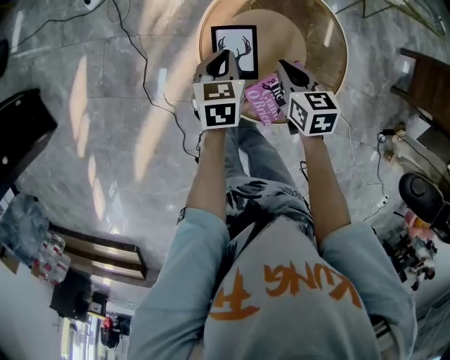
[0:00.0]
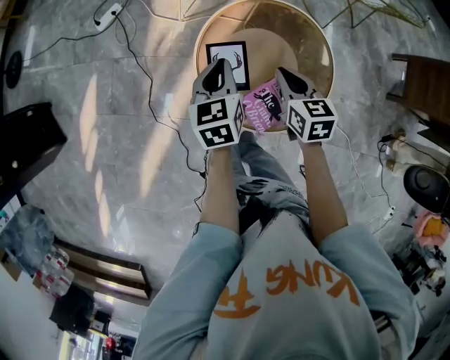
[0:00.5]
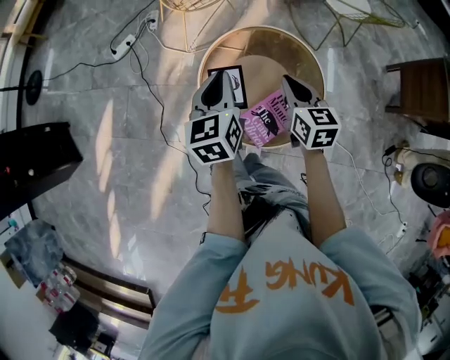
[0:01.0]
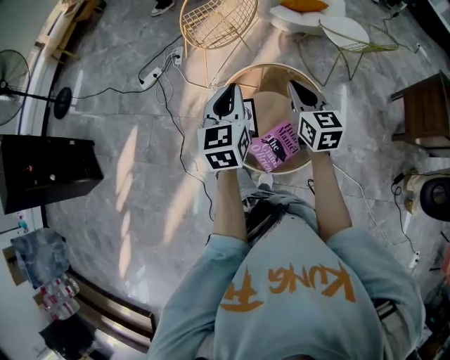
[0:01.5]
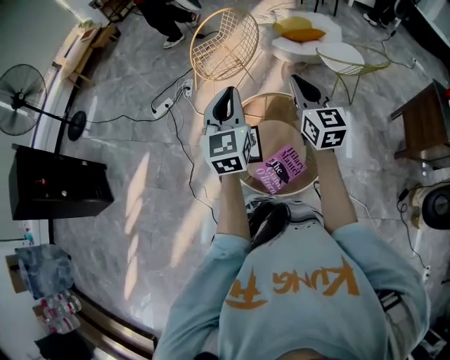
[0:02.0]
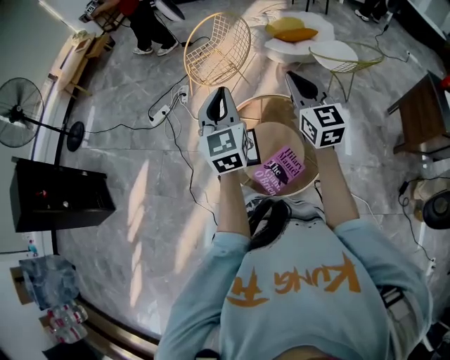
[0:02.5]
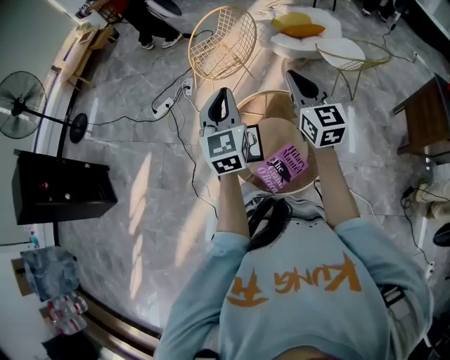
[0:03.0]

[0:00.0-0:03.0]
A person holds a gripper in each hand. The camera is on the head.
0:00.0 to 0:01.5: Both grippers travel together upward, some 30 cm. The left gripper turns by some 30 degrees. The right gripper swivels approximately 30 degrees.
0:01.5 to 0:03.0: The right gripper travels upward by some 15 cm. The left gripper is displaced upward by some 10 cm.

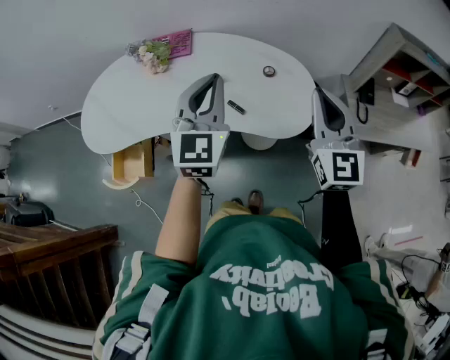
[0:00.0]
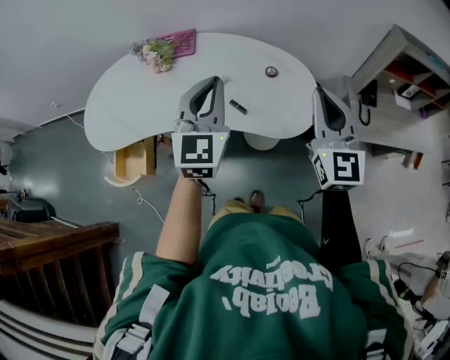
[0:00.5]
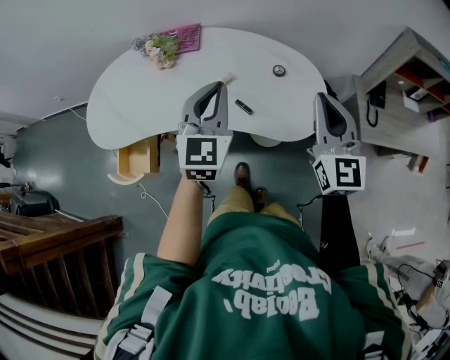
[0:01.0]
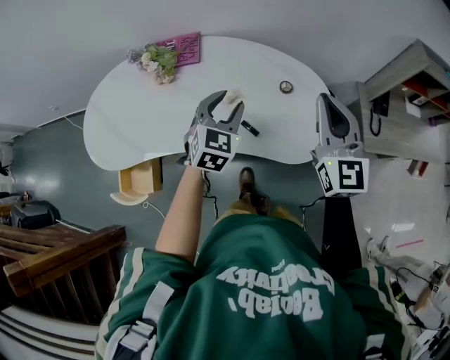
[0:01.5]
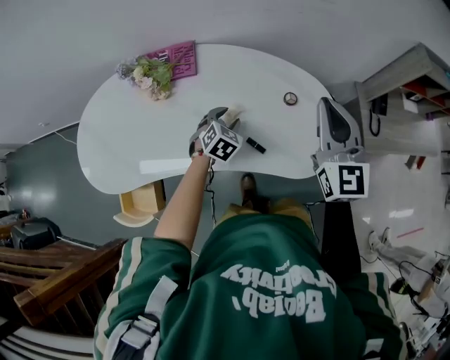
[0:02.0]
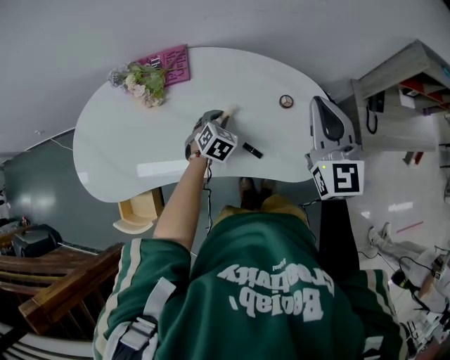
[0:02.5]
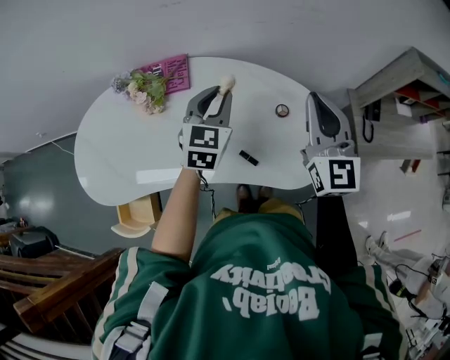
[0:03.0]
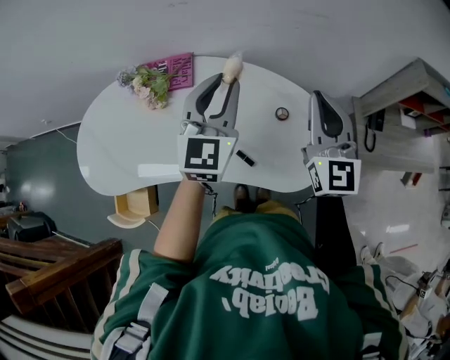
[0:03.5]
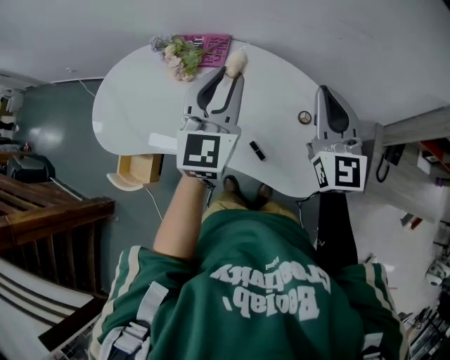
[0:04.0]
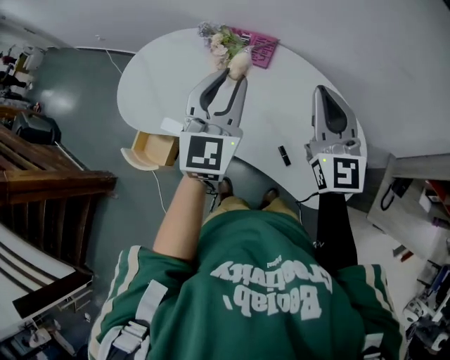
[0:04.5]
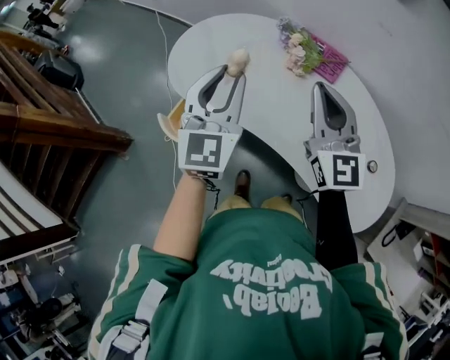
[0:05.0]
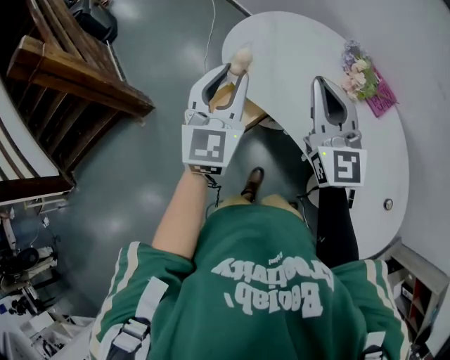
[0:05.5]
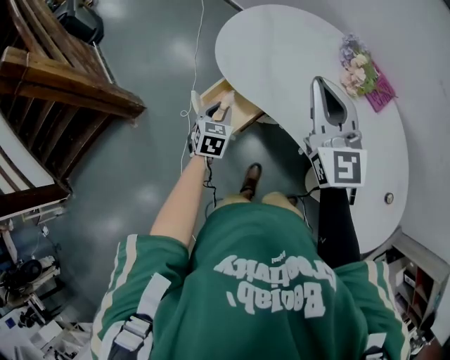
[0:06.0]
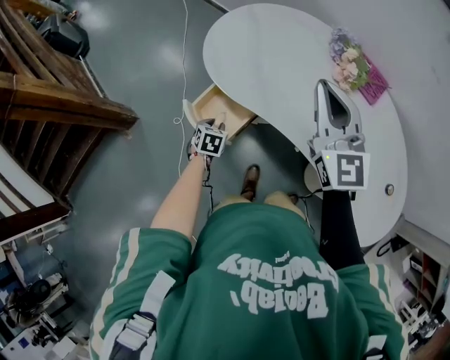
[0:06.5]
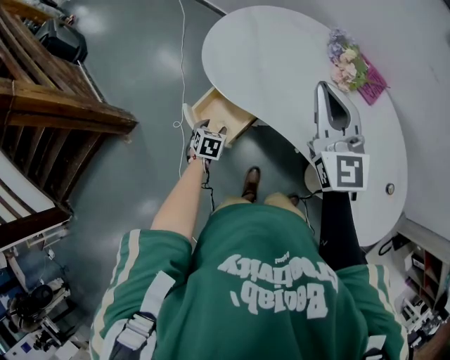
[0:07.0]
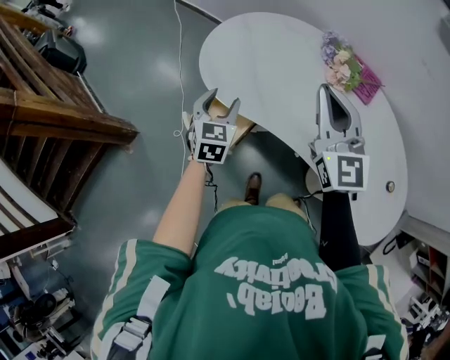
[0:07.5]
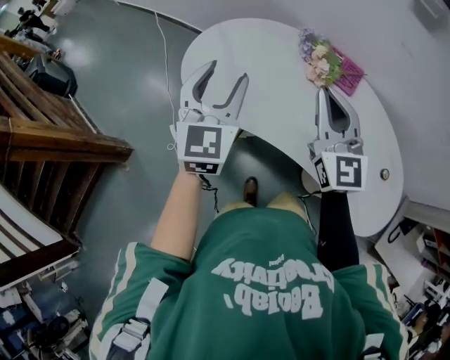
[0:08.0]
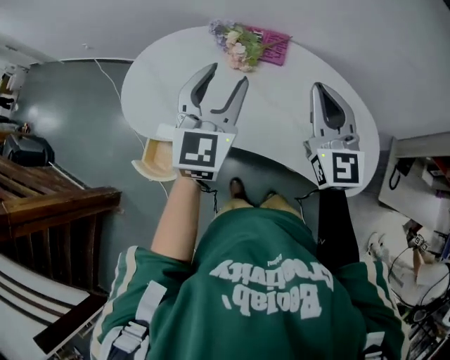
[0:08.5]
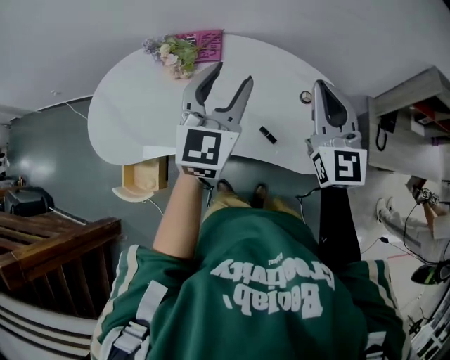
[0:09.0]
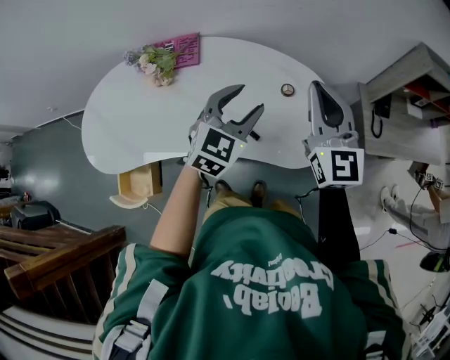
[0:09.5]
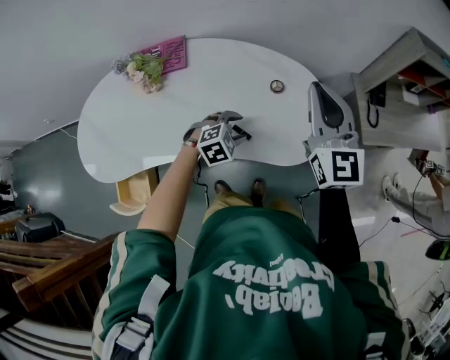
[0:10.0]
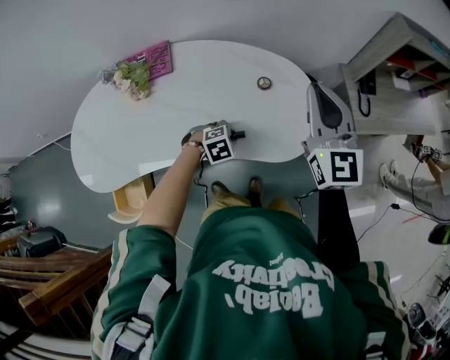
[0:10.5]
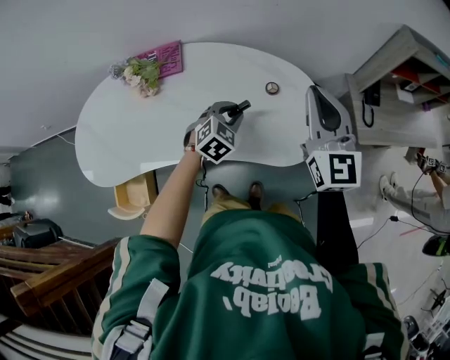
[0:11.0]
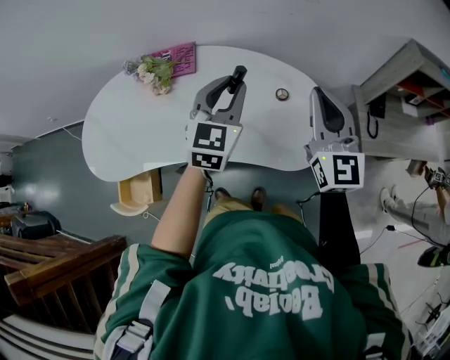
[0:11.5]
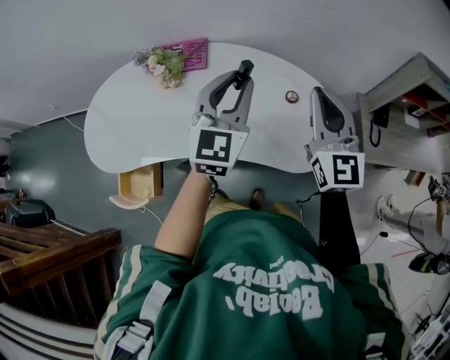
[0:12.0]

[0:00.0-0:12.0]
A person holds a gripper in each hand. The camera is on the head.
0:00.0 to 0:02.0: The left gripper travels downward and forward by some 35 cm, points its fingers some 50 degrees further downward, and opens; the right gripper heads forward, covering approximately 15 cm.
0:02.0 to 0:04.0: The right gripper travels forward by some 5 cm. The left gripper heads upward, covering some 30 cm, and tilts its fingers about 50 degrees upward.
0:04.0 to 0:06.0: Both grippers are carried roughly 50 cm. The left gripper tips its fingers downward by roughly 40 degrees. Meanwhile the right gripper changes its angle by approximately 40 degrees.
0:06.0 to 0:08.0: The right gripper travels to the right by about 10 cm. Meanwhile the left gripper goes approximately 30 cm upward, points its fingers some 40 degrees further upward, and opens its fingers.
0:08.0 to 0:10.0: The two grippers travel together, approximately 50 cm. The right gripper changes its angle by some 40 degrees. Meanwhile the left gripper points its fingers about 50 degrees further downward.
0:10.0 to 0:12.0: The right gripper ends up roughly 5 cm from where it was; the left gripper travels upward by roughly 30 cm, tilts its fingers about 60 degrees upward, and closes its fingers.

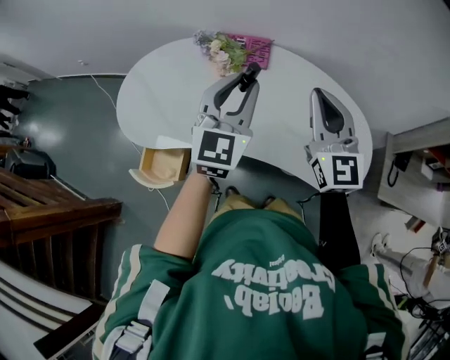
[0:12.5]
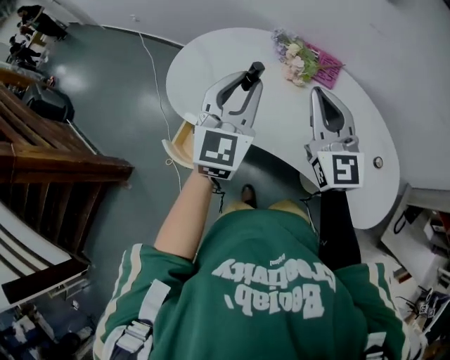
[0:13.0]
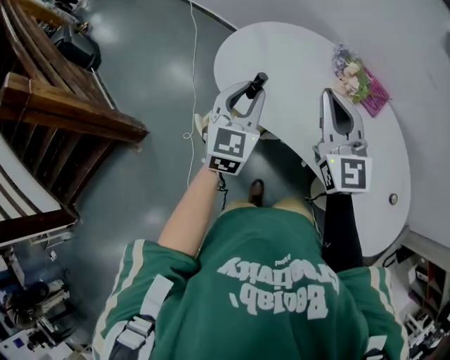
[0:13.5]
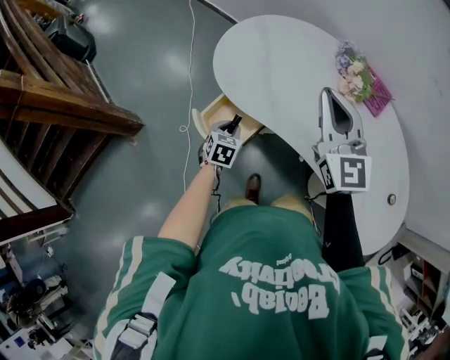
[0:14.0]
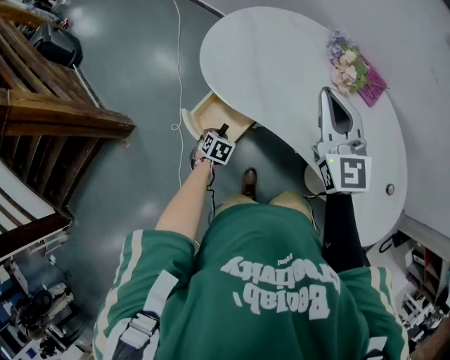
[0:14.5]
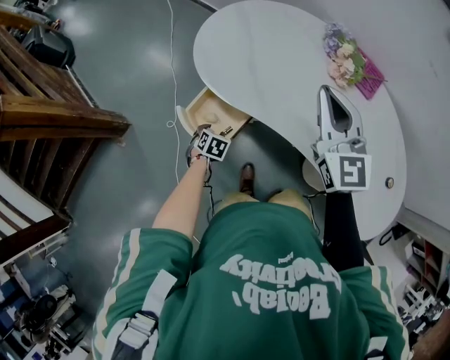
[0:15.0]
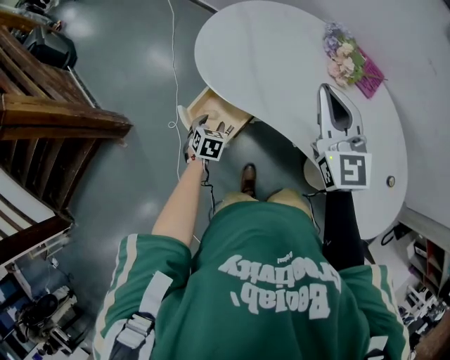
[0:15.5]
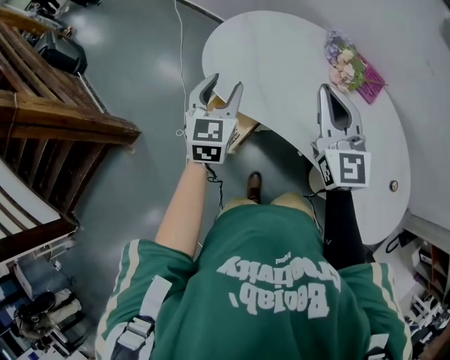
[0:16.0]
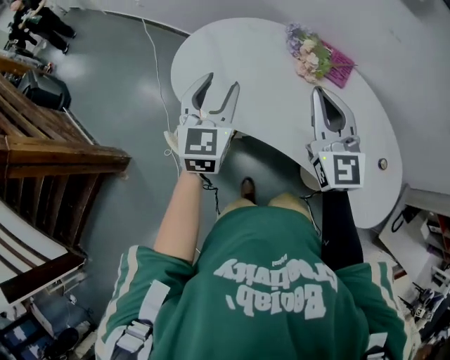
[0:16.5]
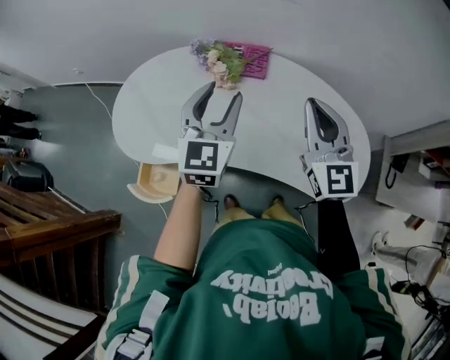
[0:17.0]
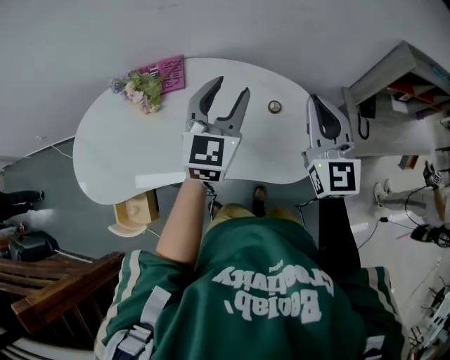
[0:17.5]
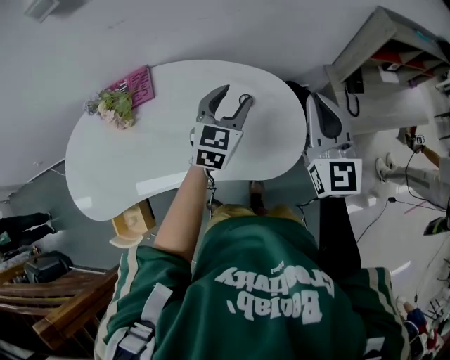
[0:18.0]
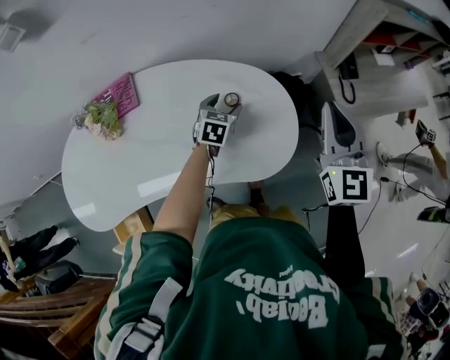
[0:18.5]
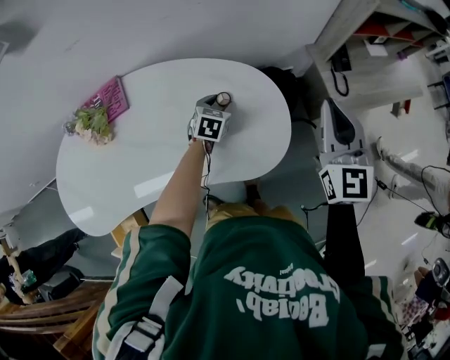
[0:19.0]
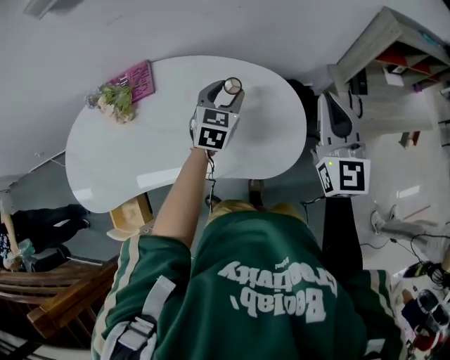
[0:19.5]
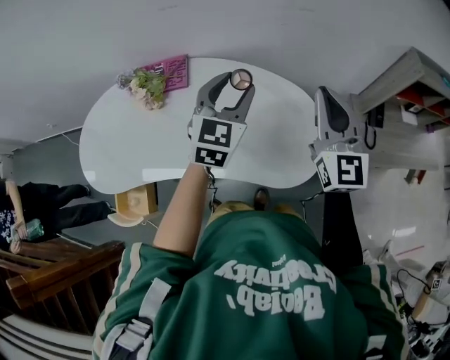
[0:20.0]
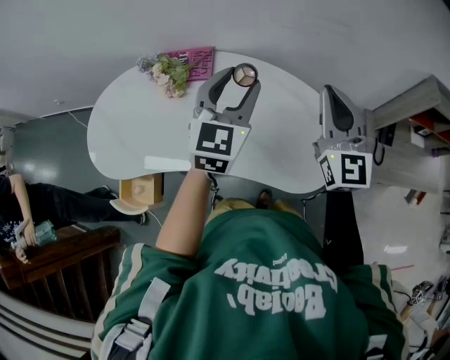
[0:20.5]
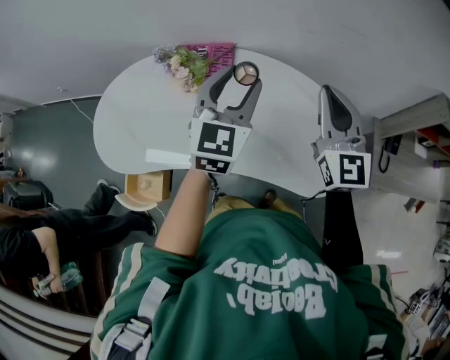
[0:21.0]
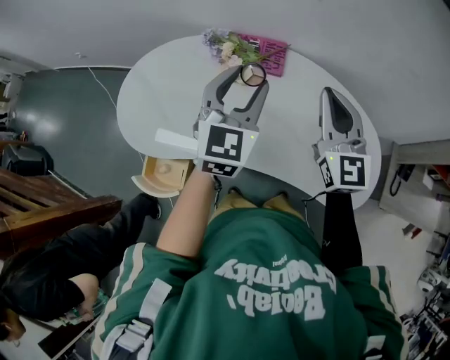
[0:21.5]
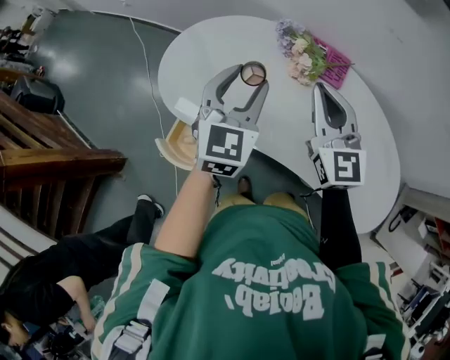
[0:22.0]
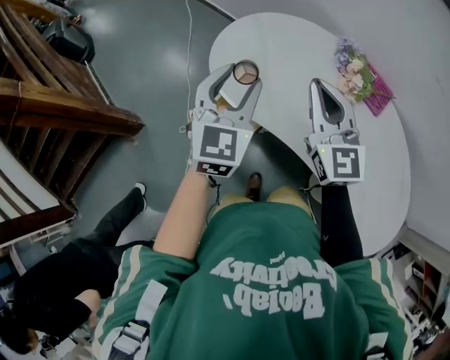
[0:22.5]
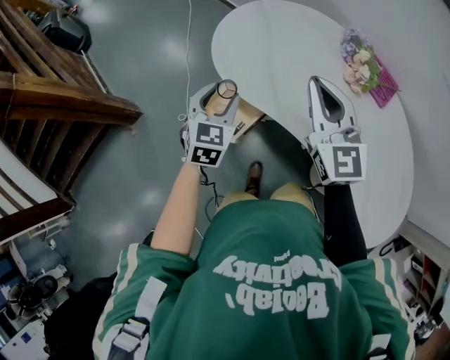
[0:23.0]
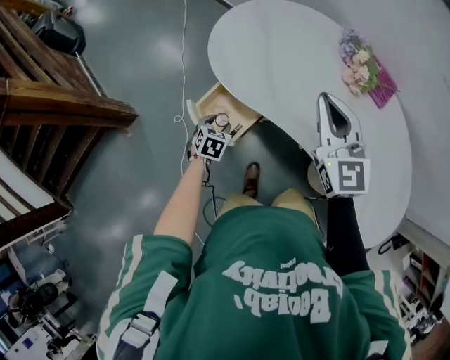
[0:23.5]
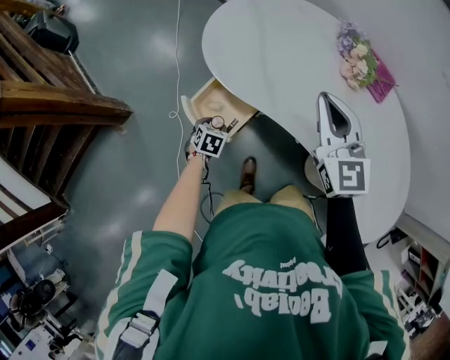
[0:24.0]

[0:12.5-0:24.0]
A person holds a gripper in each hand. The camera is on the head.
0:12.5 to 0:14.5: The left gripper goes about 50 cm downward, and angles its fingers downward, by about 60 degrees. Meanwhile the right gripper shifts by about 35 cm, and changes its angle by some 30 degrees.
0:14.5 to 0:16.5: The right gripper travels to the right by approximately 5 cm; the left gripper heads upward, covering about 40 cm, points its fingers some 60 degrees further upward, and opens its fingers.
0:16.5 to 0:18.5: Both grippers are carried some 60 cm. The left gripper tips its fingers downward by roughly 30 degrees. The right gripper rotates approximately 60 degrees.
0:18.5 to 0:20.0: The left gripper moves upward, about 25 cm, and rotates approximately 30 degrees, while the right gripper shifts roughly 15 cm to the left and upward.
0:20.0 to 0:22.0: Both grippers are carried roughly 50 cm. The left gripper swivels approximately 30 degrees; the right gripper swivels about 40 degrees.
0:22.0 to 0:24.0: The left gripper travels downward and to the left by some 50 cm, and tilts its fingers about 50 degrees downward; the right gripper shifts about 15 cm to the left and downward.
